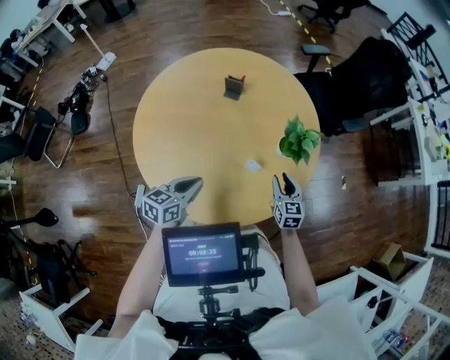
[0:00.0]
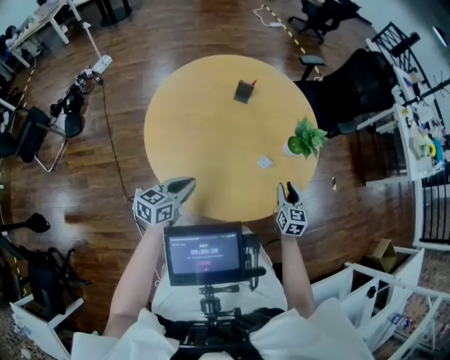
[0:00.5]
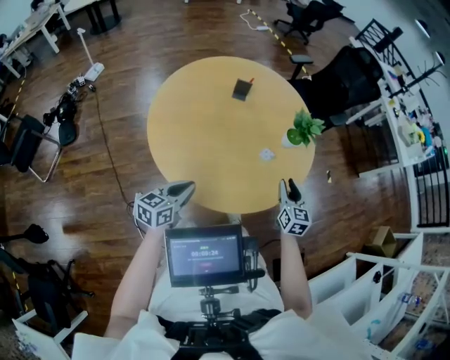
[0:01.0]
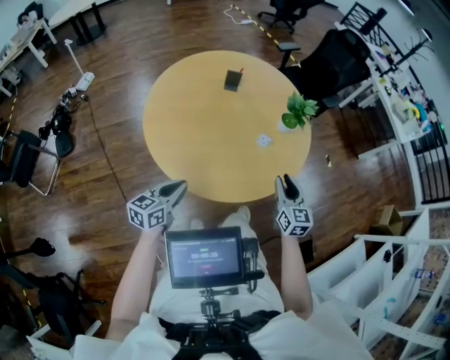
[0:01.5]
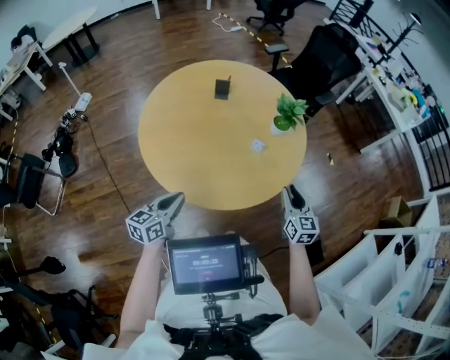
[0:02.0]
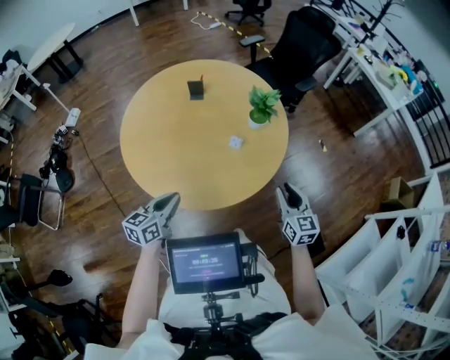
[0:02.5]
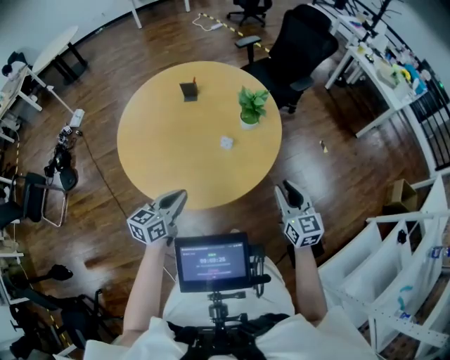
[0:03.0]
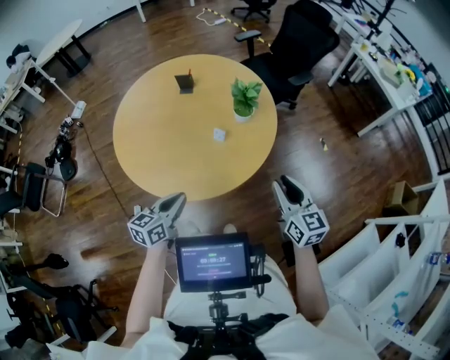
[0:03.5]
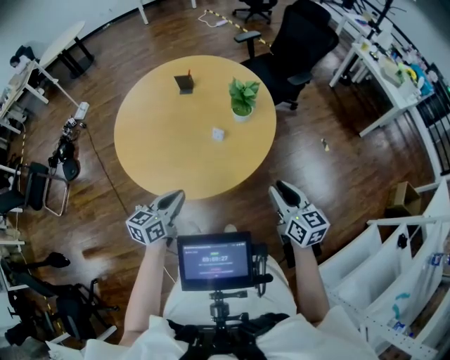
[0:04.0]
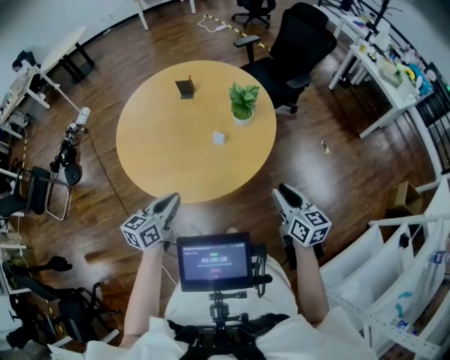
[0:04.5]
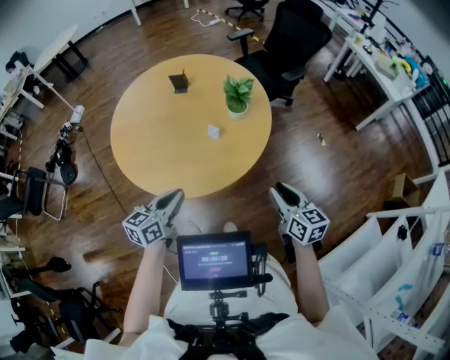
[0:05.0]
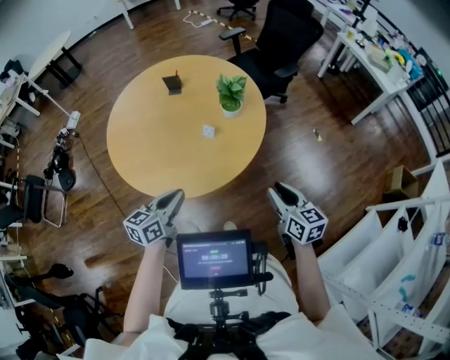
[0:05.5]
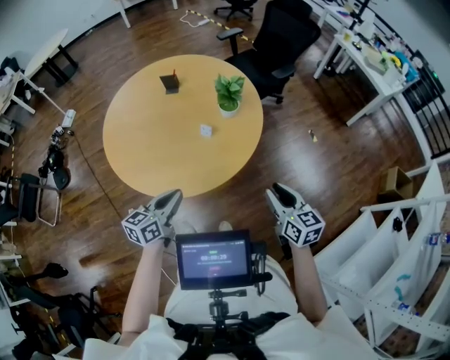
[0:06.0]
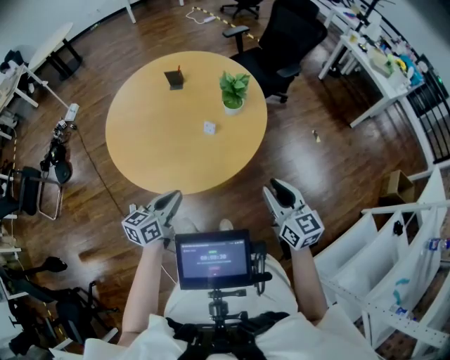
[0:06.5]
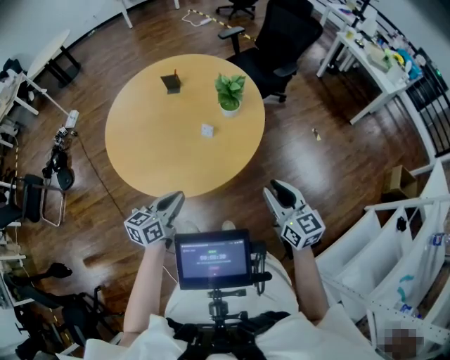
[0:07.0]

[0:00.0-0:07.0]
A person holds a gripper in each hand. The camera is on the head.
0:00.0 to 0:02.0: The right gripper shifts roughly 25 cm backward and upward. Meanwhile the left gripper goes roughly 20 cm backward and to the left.
0:02.0 to 0:03.5: The left gripper is displaced to the right by approximately 20 cm, while the right gripper travels to the right and upward by about 20 cm.
0:03.5 to 0:05.0: The right gripper ends up approximately 5 cm from where it was.
0:05.0 to 0:07.0: The grippers move only a little.

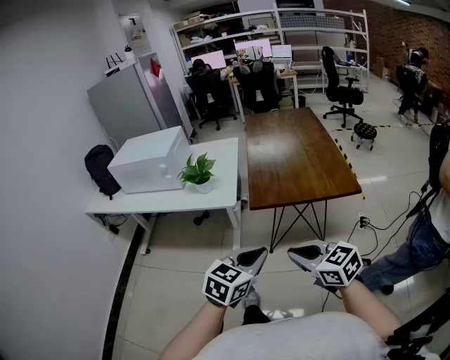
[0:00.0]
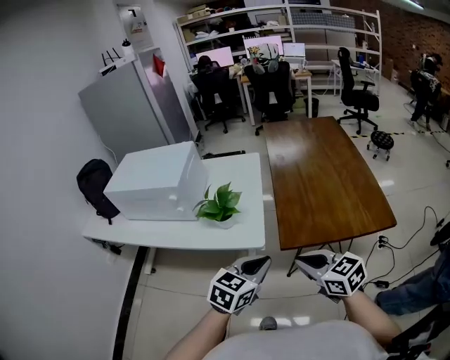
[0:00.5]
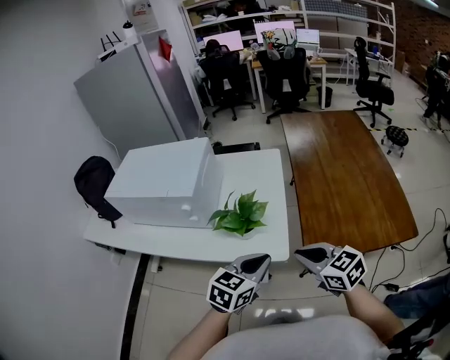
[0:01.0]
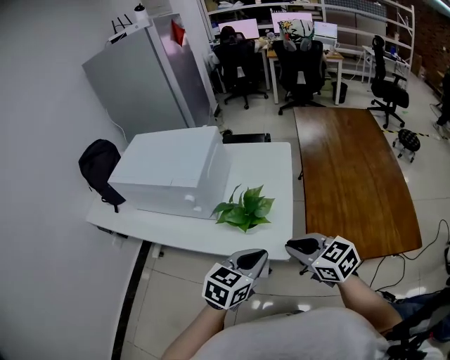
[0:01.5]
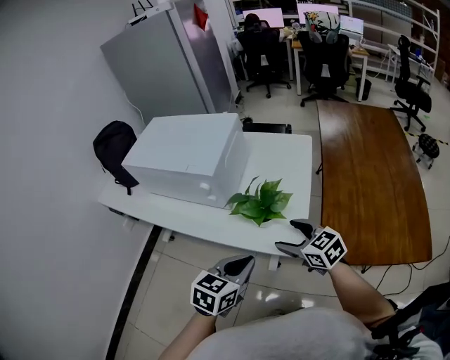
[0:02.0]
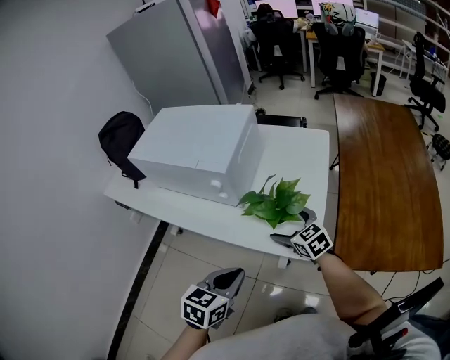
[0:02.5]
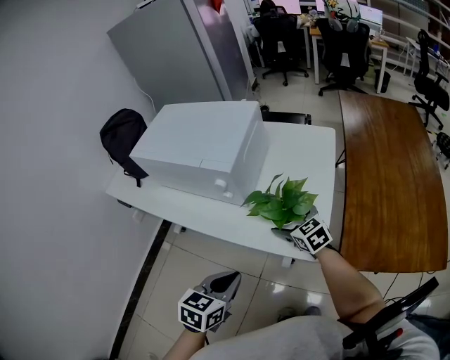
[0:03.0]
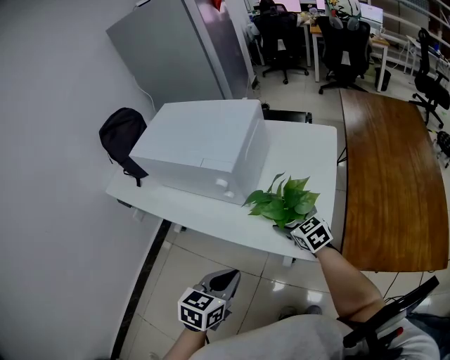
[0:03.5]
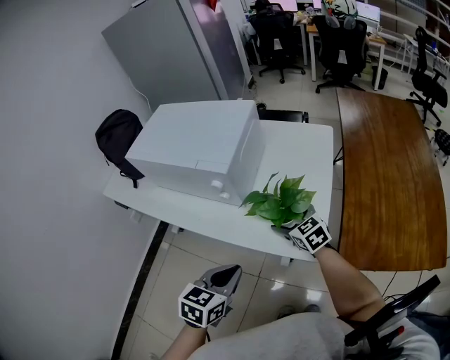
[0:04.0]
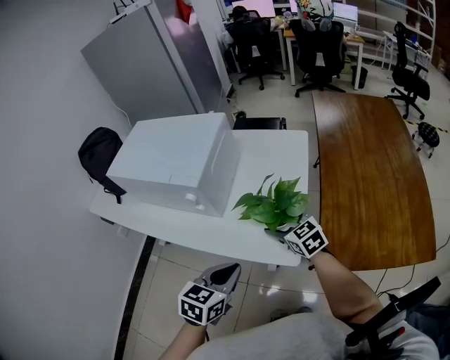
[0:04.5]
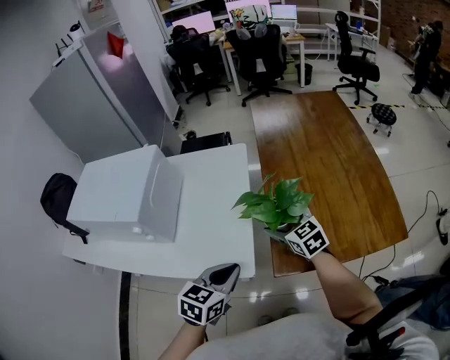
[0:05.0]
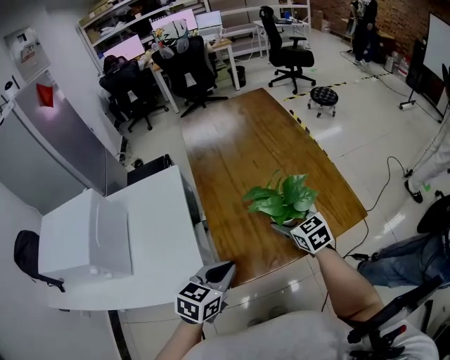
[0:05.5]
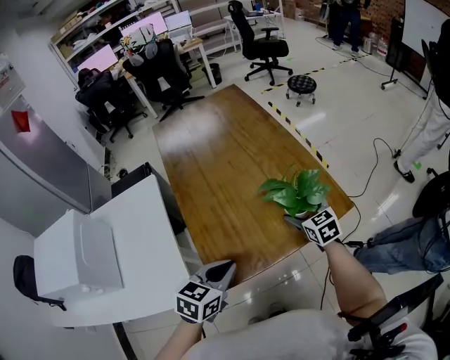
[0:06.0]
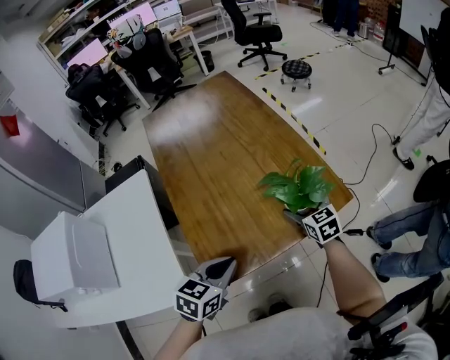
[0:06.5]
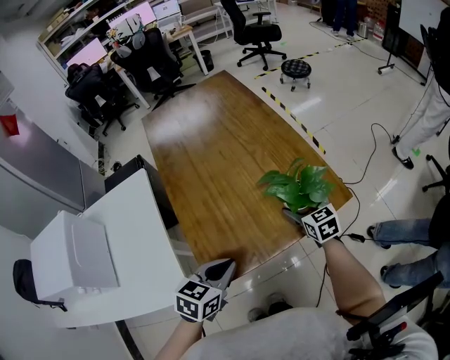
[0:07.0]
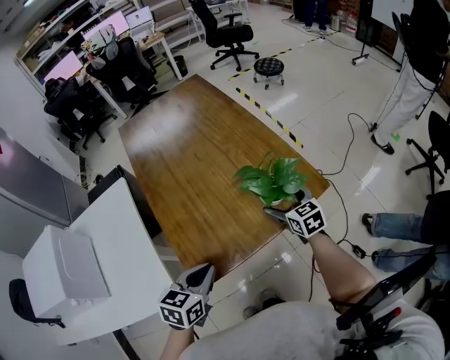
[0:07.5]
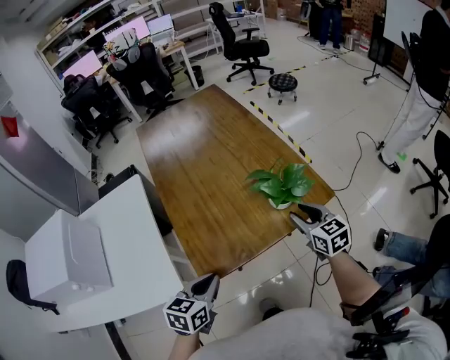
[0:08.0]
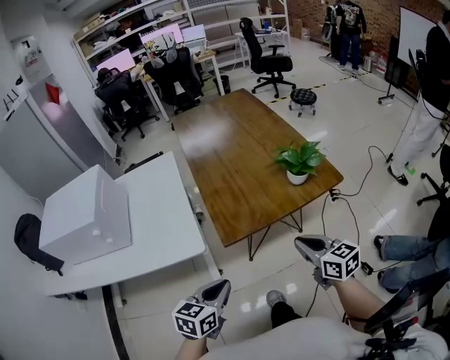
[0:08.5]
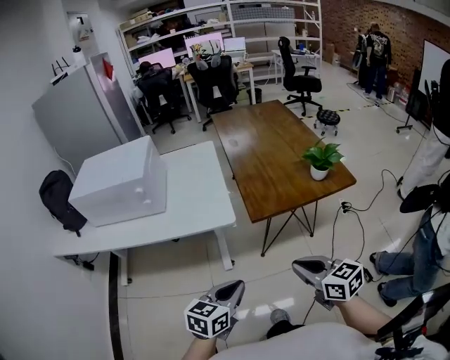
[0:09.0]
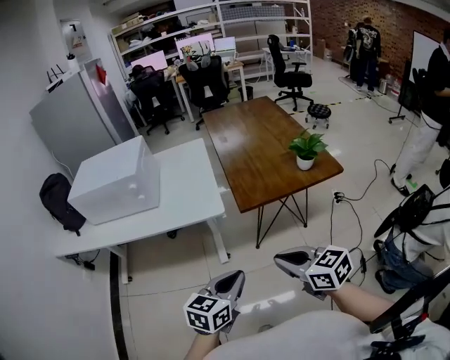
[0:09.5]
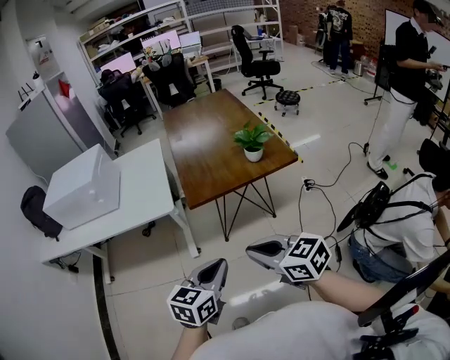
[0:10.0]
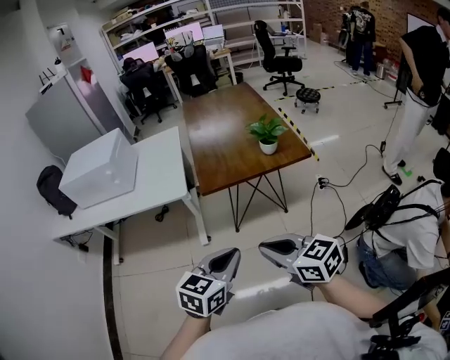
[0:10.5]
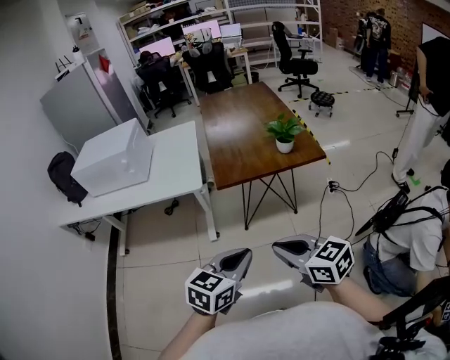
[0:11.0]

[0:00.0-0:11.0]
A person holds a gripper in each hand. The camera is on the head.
0:00.0 to 0:02.0: The pair of grippers is taken forward and to the left, about 50 cm. The right gripper opens, while the left gripper rotates some 20 degrees.
0:02.0 to 0:03.5: The left gripper goes about 10 cm to the left. The right gripper moves forward, downward and to the left, some 15 cm.
0:03.5 to 0:05.5: The right gripper ends up roughly 50 cm from where it was, and rotates approximately 40 degrees. Meanwhile the left gripper ends up roughly 40 cm from where it was, and rotates roughly 40 degrees.
0:05.5 to 0:07.5: The left gripper heads to the right, covering approximately 5 cm, while the right gripper is displaced to the right by approximately 15 cm.
0:07.5 to 0:09.0: Both grippers are carried backward, approximately 50 cm. The right gripper swivels some 30 degrees, and closes its fingers.
0:09.0 to 0:11.0: The right gripper goes about 20 cm backward, to the right and upward. Meanwhile the left gripper travels to the right, backward and upward by roughly 25 cm.

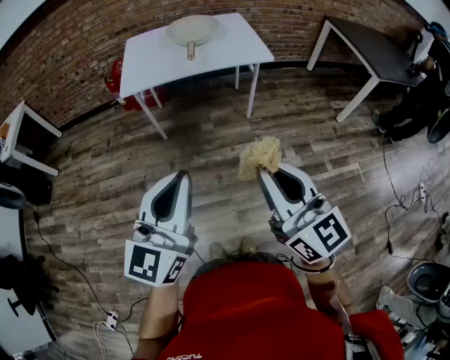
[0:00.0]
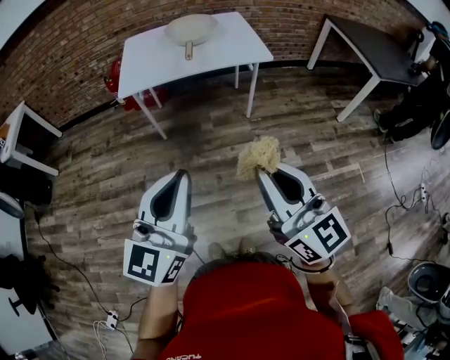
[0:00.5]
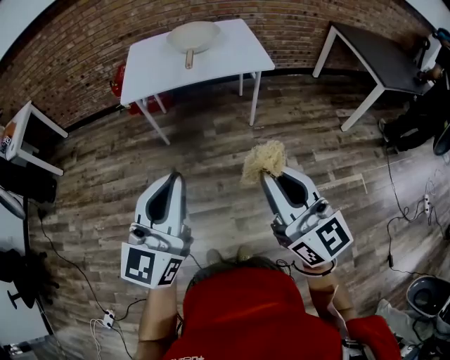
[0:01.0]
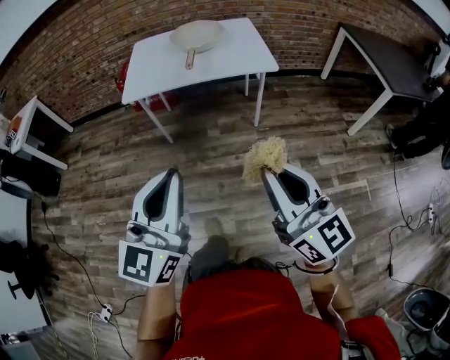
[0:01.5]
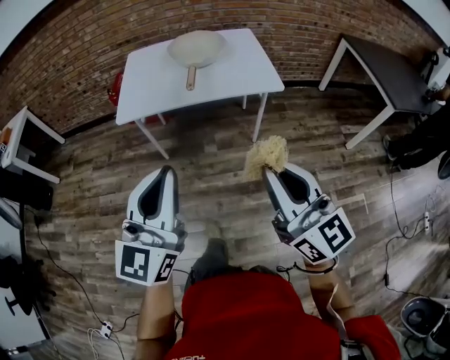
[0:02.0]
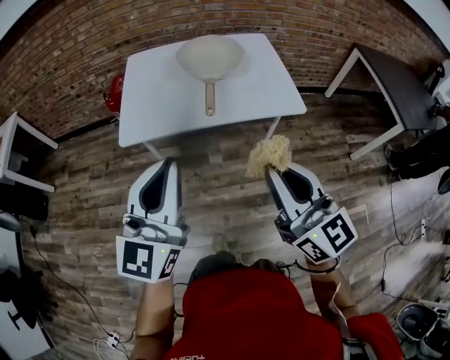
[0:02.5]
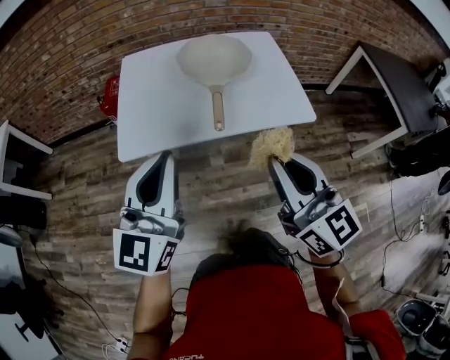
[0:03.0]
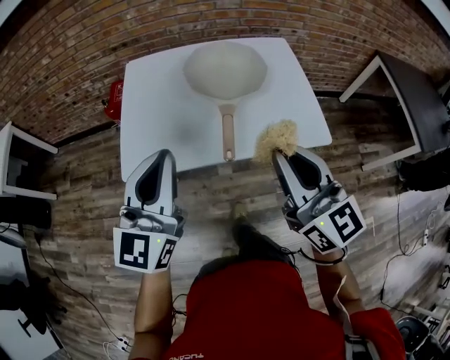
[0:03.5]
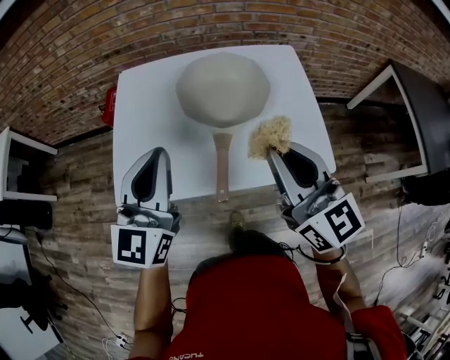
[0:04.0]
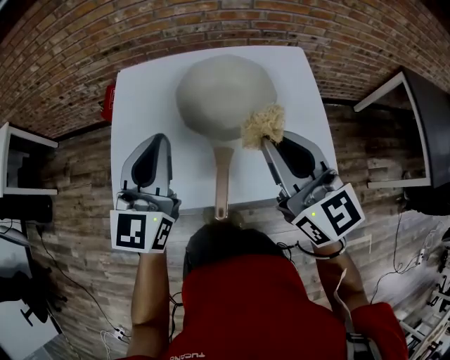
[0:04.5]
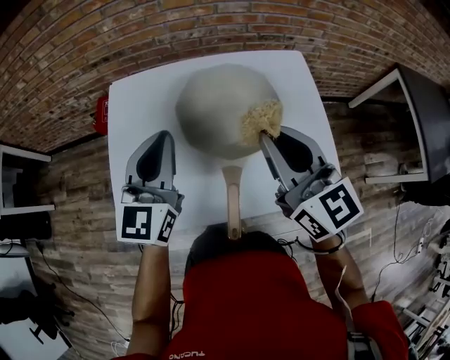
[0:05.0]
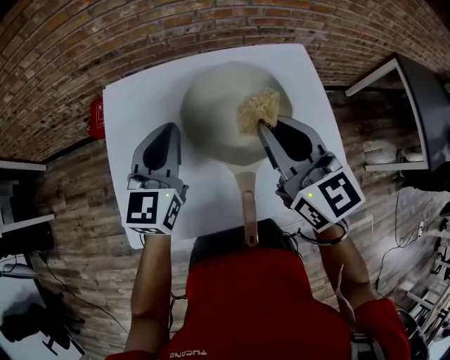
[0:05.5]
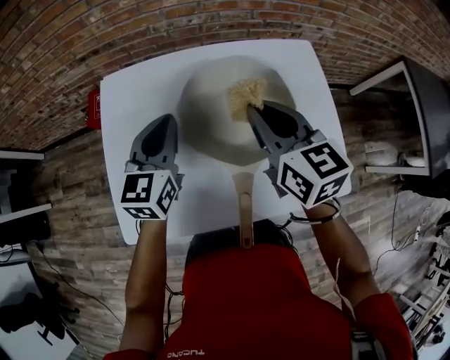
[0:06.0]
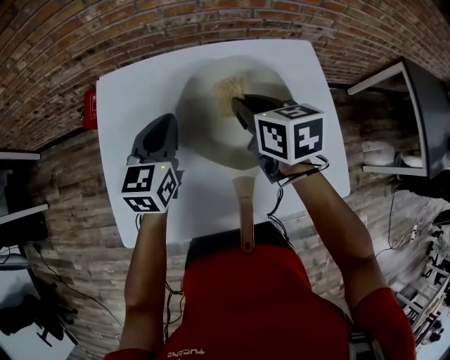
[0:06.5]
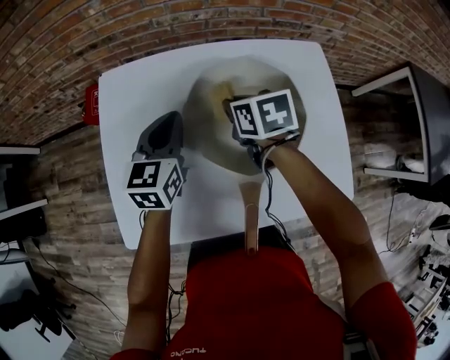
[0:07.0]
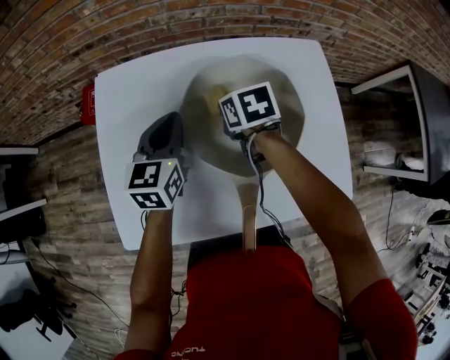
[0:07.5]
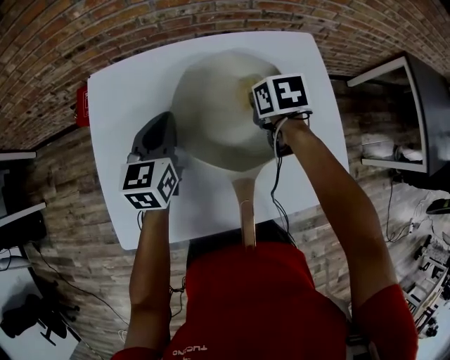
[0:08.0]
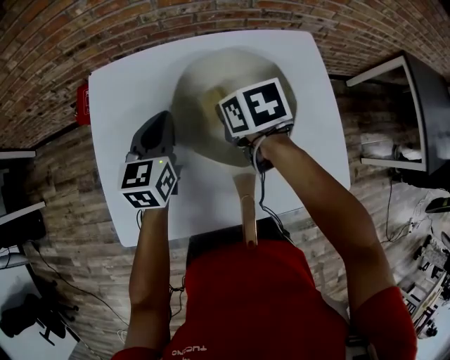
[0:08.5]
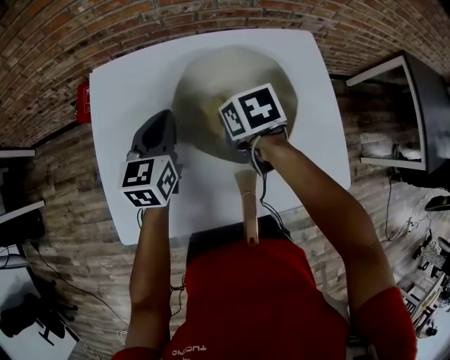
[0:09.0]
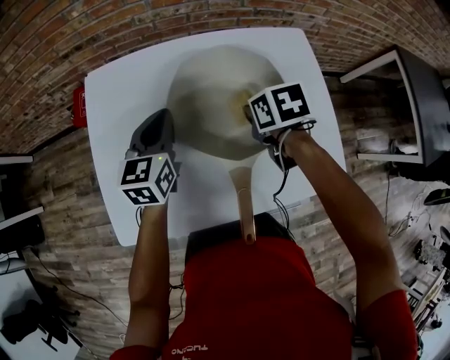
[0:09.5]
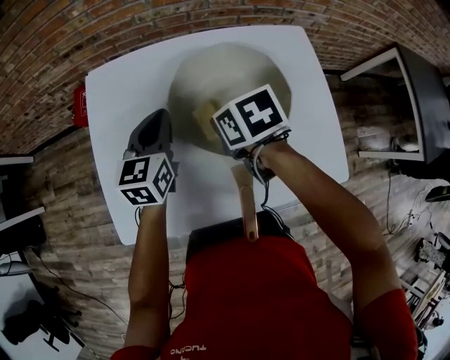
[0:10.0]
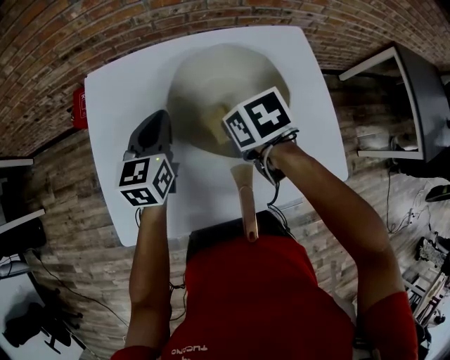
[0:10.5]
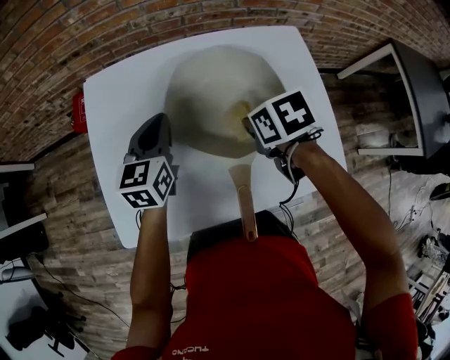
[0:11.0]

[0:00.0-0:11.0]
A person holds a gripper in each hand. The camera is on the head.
0:00.0 to 0:02.0: The grippers both shift forward by roughly 15 cm.
0:02.0 to 0:03.5: The pair of grippers is taken forward, about 40 cm.
0:03.5 to 0:05.5: Both grippers move forward, about 35 cm.
0:05.5 to 0:07.5: The left gripper moves downward and forward, roughly 15 cm, while the right gripper shifts some 30 cm downward and forward, and angles its fingers downward, by about 50 degrees.
0:07.5 to 0:09.0: The right gripper is displaced backward by about 5 cm, and moves about 10 cm to the right and comes back.
0:09.0 to 0:11.0: The right gripper goes left and right, about 10 cm each way, reversing 2 times.
